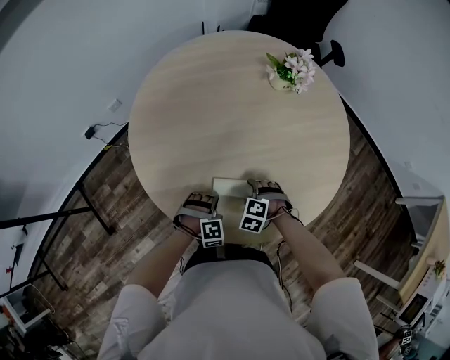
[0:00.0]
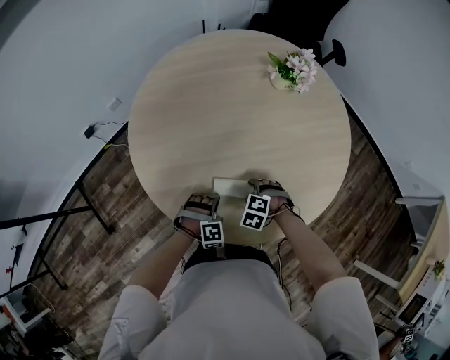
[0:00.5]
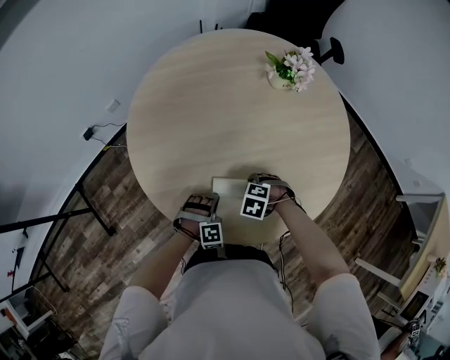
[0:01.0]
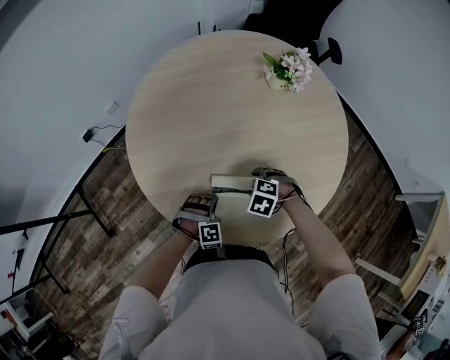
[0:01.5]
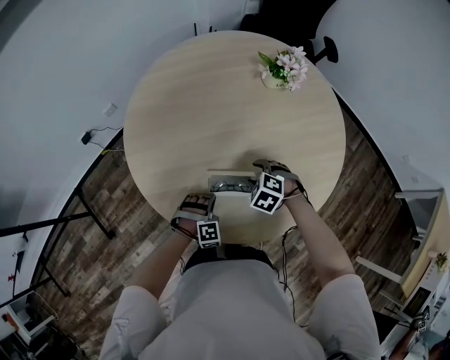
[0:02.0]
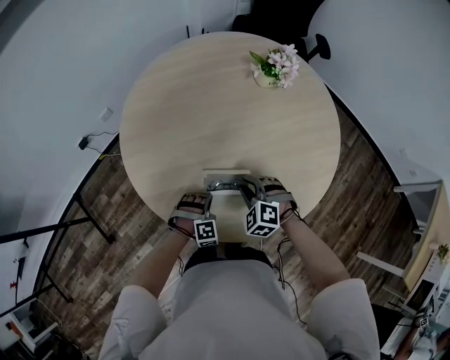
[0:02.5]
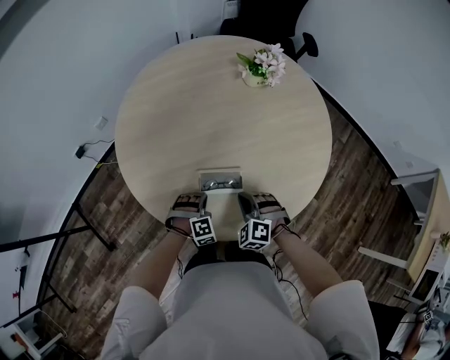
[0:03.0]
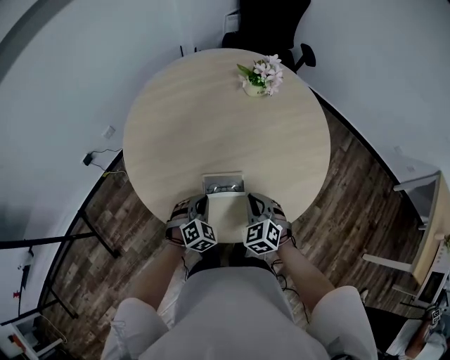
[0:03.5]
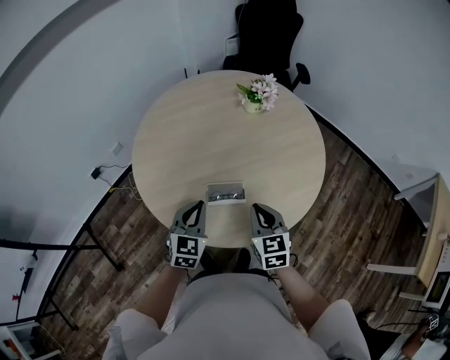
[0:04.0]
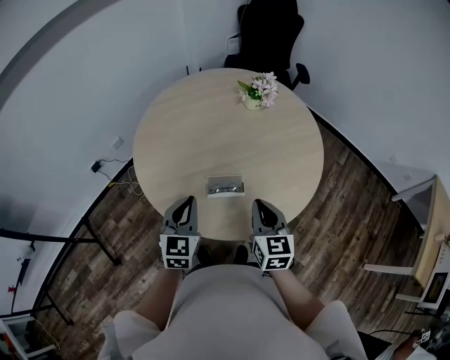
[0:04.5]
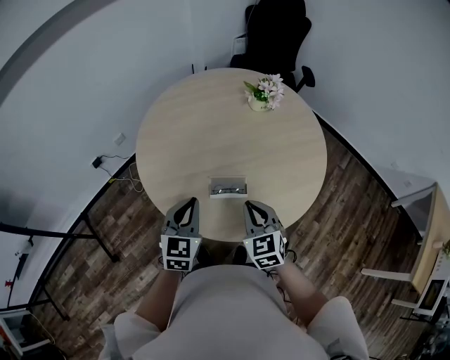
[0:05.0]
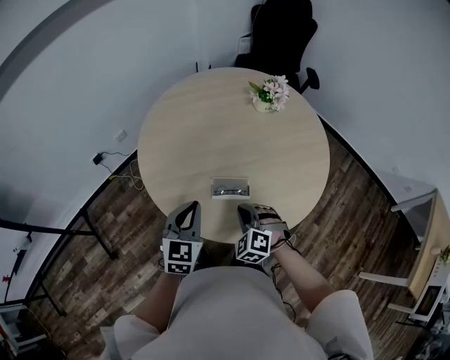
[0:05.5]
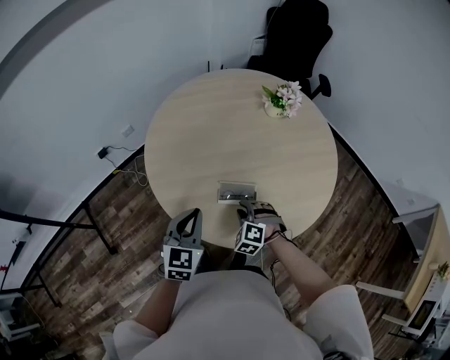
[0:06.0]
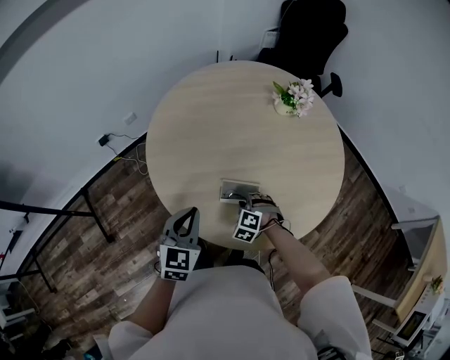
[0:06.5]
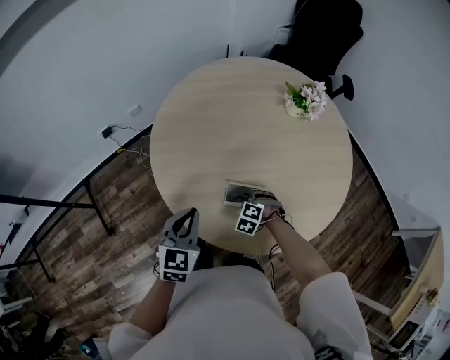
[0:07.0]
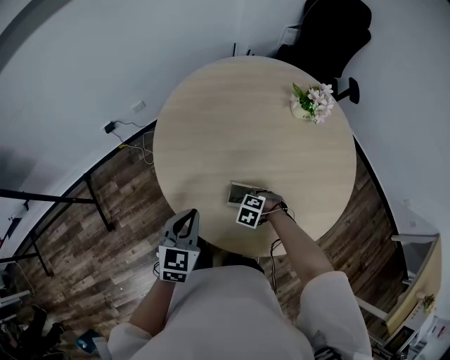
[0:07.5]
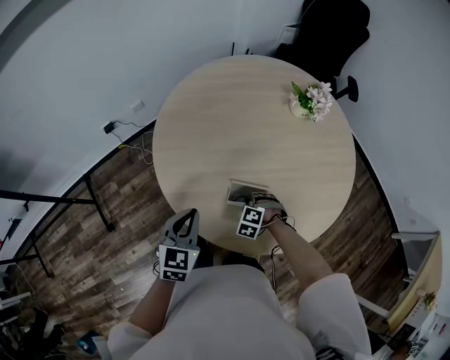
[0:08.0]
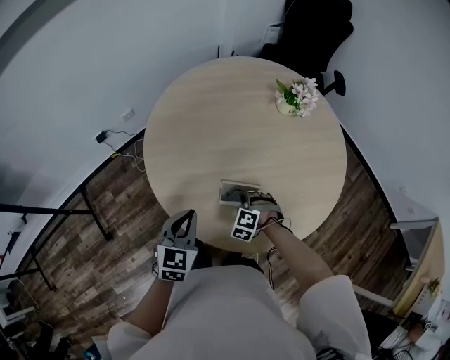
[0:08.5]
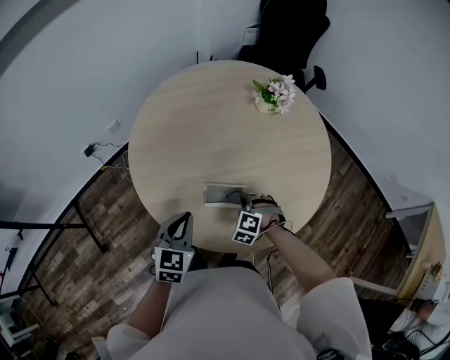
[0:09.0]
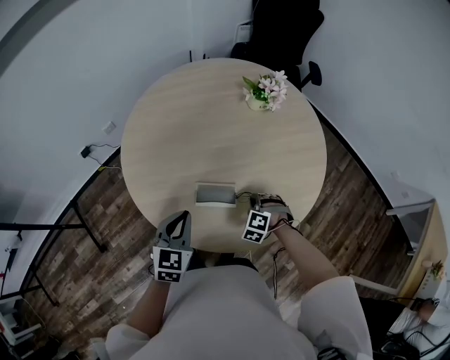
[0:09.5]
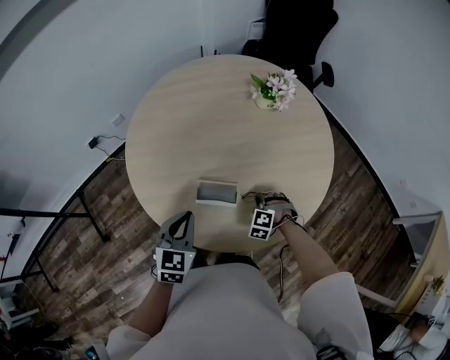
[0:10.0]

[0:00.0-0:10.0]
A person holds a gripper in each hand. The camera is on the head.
0:00.0 to 0:02.0: The right gripper changes place by some 10 cm.
0:02.0 to 0:04.0: The right gripper shifts about 20 cm upward and backward, tips its fingers upward by some 40 degrees, and closes. The left gripper travels upward by some 25 cm, and rotates around the line of its fingers by roughly 60 degrees, counterclockwise from behind.
0:04.0 to 0:06.0: The left gripper moves to the left, about 5 cm; the right gripper travels downward and to the left by roughly 15 cm, rotates around the line of its fingers by about 60 degrees, counterclockwise from behind, and opens.
0:06.0 to 0:08.0: The left gripper ends up some 5 cm from where it was. Meanwhile the right gripper goes approximately 10 cm downward.
0:08.0 to 0:10.0: Both grippers move to the right, approximately 15 cm.

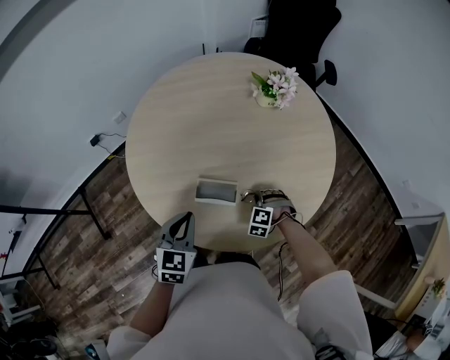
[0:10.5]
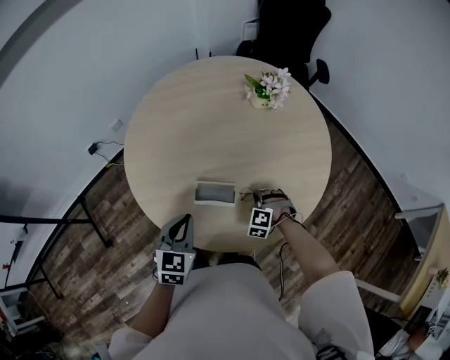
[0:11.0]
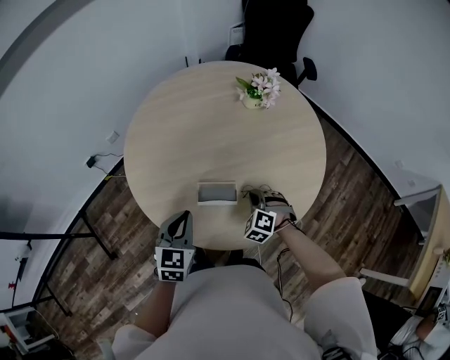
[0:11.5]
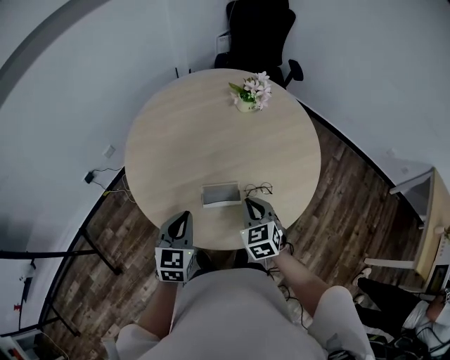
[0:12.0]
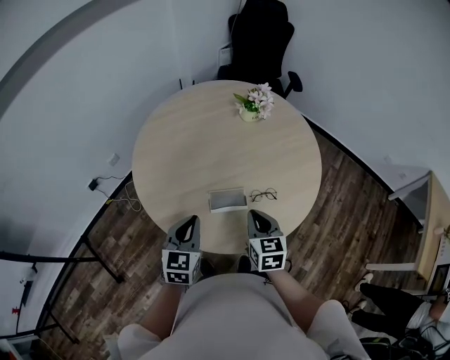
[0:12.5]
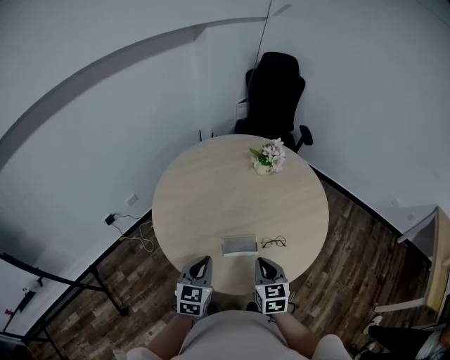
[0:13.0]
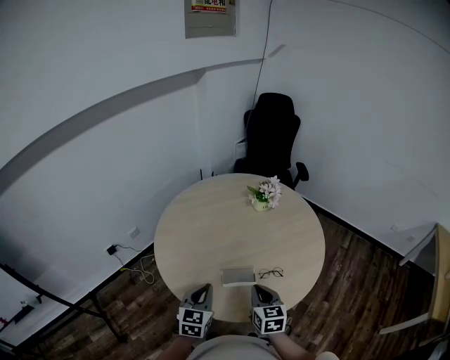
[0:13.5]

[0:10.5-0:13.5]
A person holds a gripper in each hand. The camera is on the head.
0:10.5 to 0:12.0: The left gripper is displaced to the left by roughly 5 cm. Meanwhile the right gripper heads upward, covering roughly 20 cm, and rotates around the line of its fingers by about 60 degrees, clockwise from behind.
0:12.0 to 0:13.5: The right gripper is displaced backward and upward by roughly 10 cm, and turns by approximately 30 degrees.

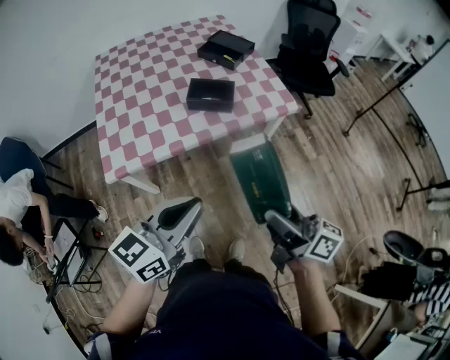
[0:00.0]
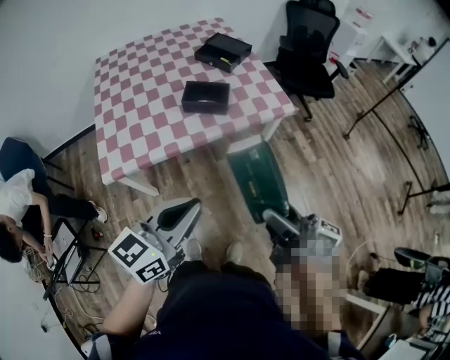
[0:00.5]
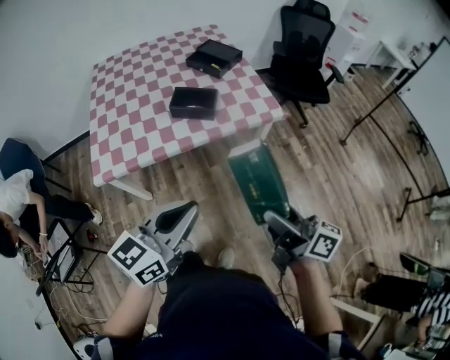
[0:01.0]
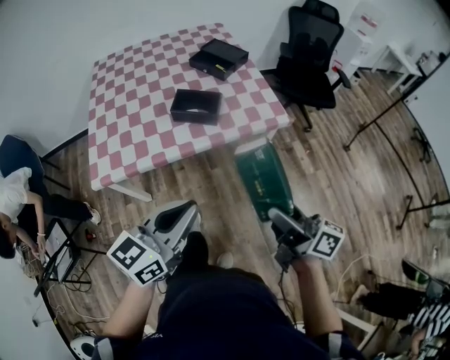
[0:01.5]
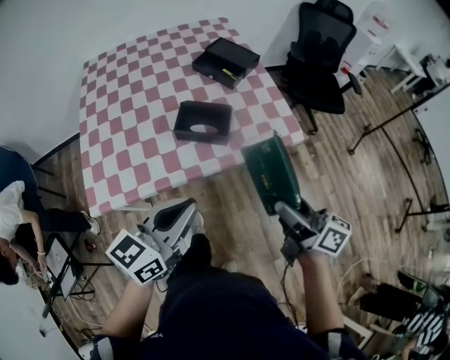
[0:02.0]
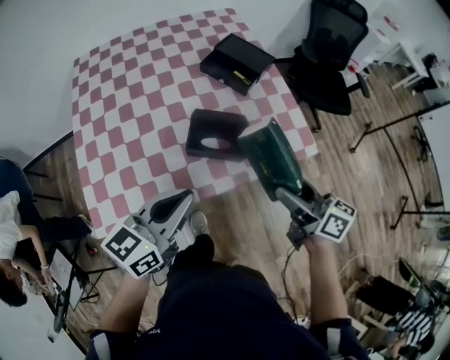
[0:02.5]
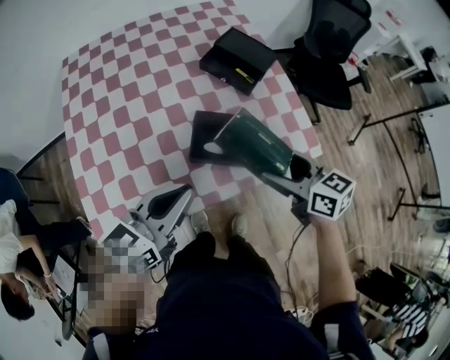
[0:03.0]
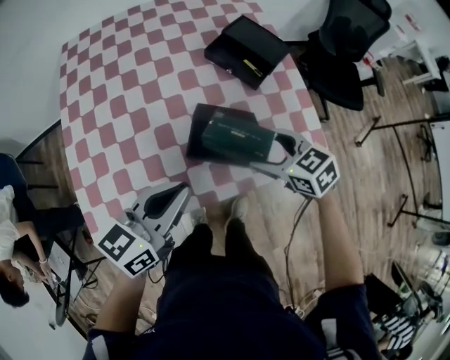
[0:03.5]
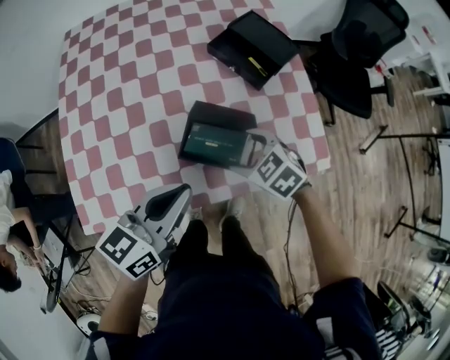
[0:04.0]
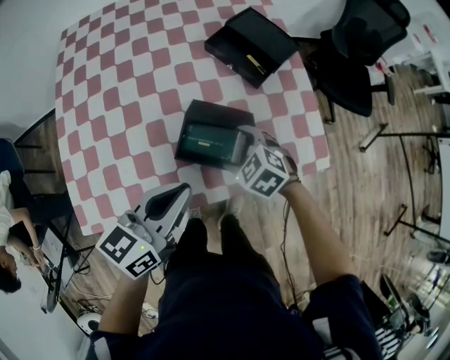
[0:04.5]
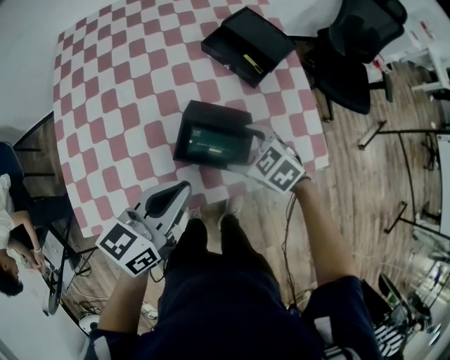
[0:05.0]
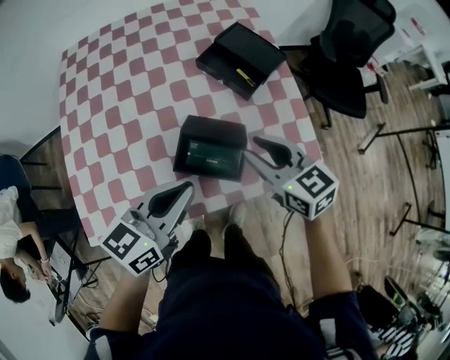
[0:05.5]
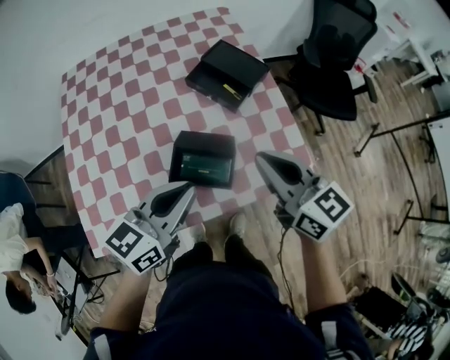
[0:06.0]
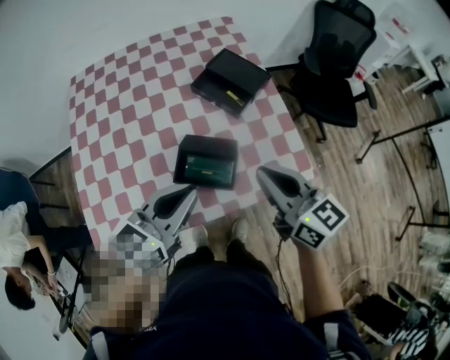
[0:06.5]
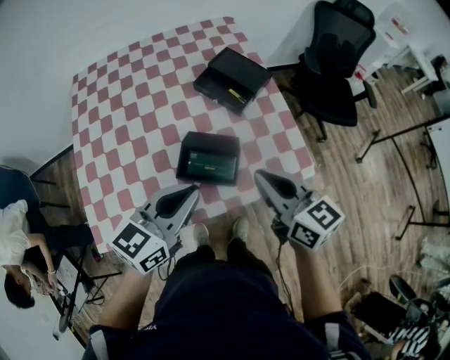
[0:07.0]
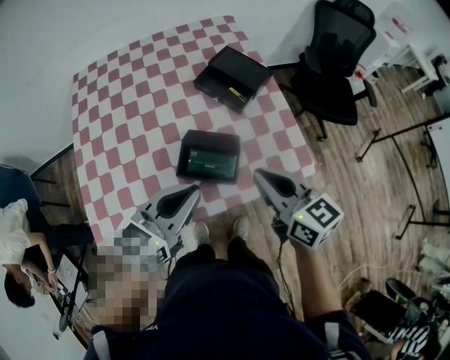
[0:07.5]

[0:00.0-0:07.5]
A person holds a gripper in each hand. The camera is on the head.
0:00.0 to 0:02.0: The grippers both shift forward by roughly 20 cm.
0:02.0 to 0:04.0: The right gripper travels forward, downward and to the left by about 35 cm, and angles its fingers downward, by about 60 degrees. The left gripper travels forward by approximately 20 cm.
0:04.0 to 0:05.5: The right gripper travels upward by about 15 cm, turns by some 40 degrees, and closes up.
0:05.5 to 0:07.5: The left gripper moves about 5 cm. The right gripper travels backward and upward by about 10 cm.

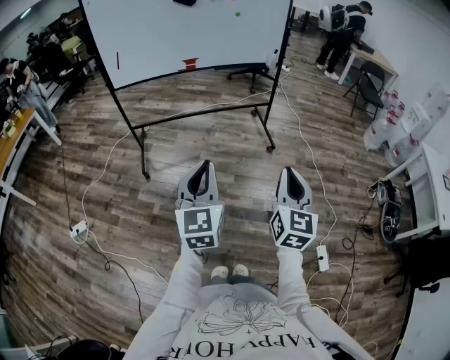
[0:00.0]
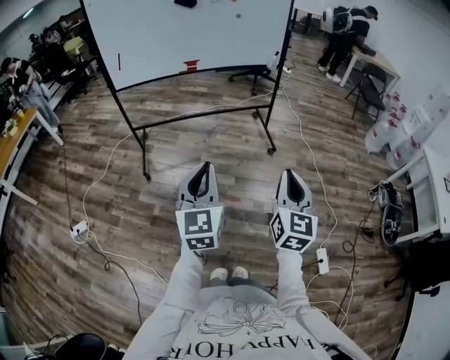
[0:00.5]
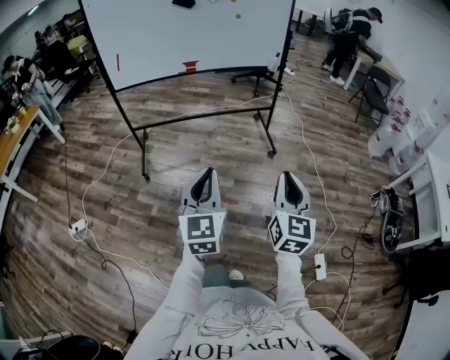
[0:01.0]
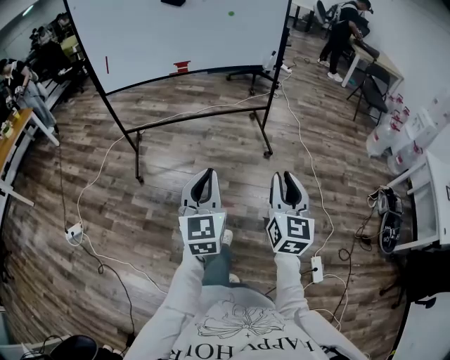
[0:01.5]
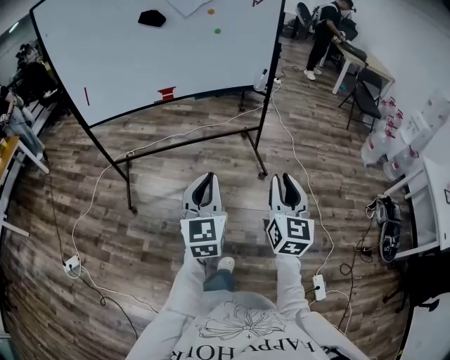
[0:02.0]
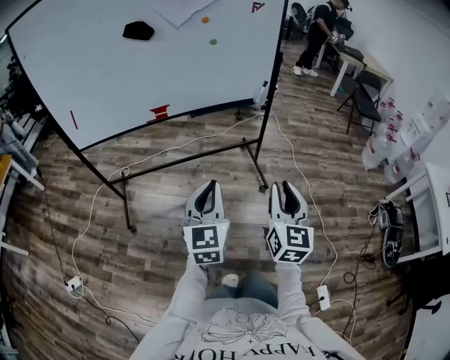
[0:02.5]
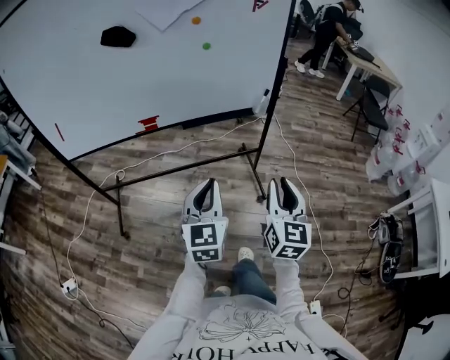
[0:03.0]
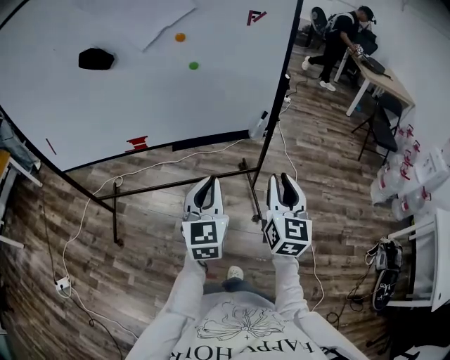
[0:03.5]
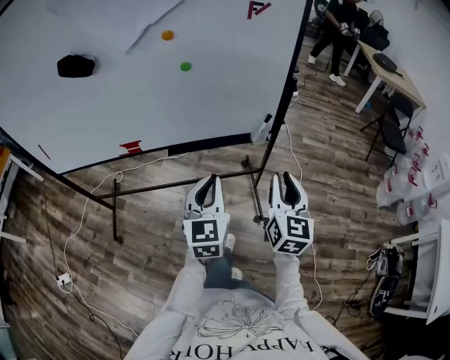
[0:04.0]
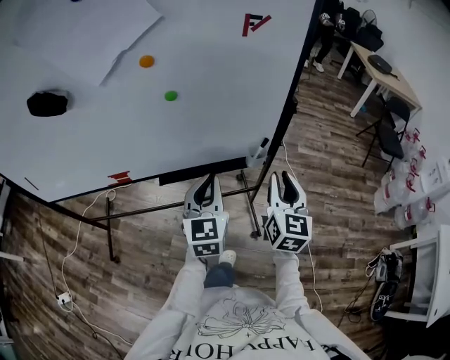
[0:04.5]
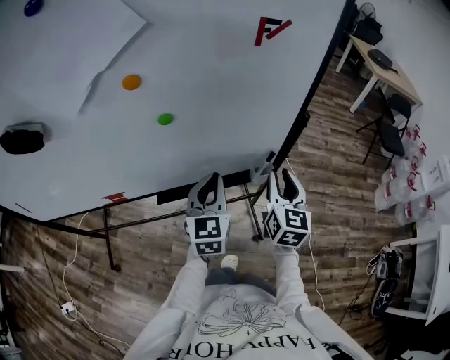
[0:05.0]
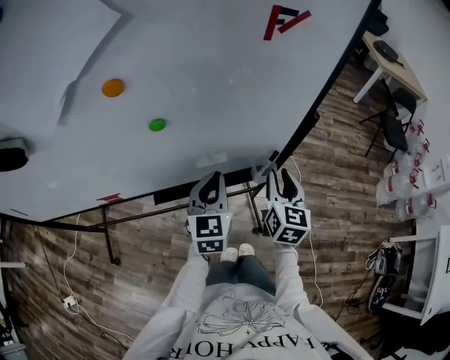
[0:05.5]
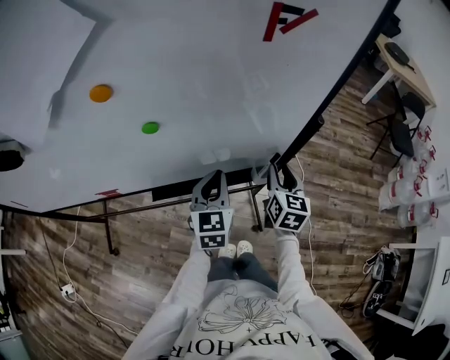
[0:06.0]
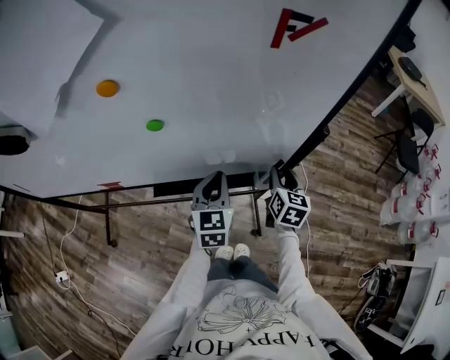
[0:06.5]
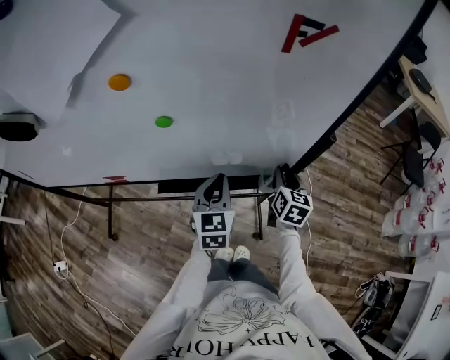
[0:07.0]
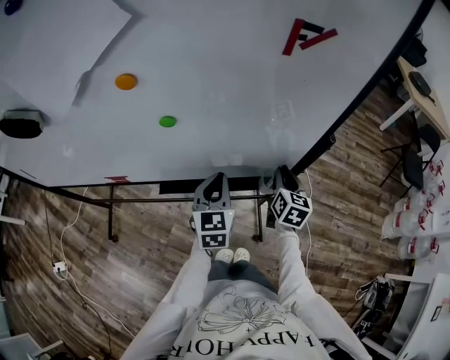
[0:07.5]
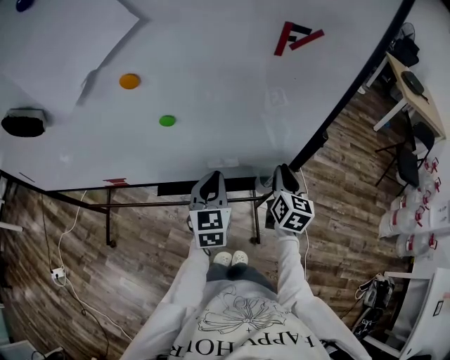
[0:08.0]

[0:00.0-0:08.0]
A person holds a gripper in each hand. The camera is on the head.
0:00.0 to 0:02.0: The grippers both shift forward by approximately 25 cm.
0:02.0 to 0:04.0: The two grippers travel together, forward, roughly 50 cm.
0:04.0 to 0:06.0: The left gripper heads forward, covering roughly 30 cm; the right gripper is displaced forward and downward by about 35 cm.
0:06.0 to 0:08.0: The grippers make only small movements.
